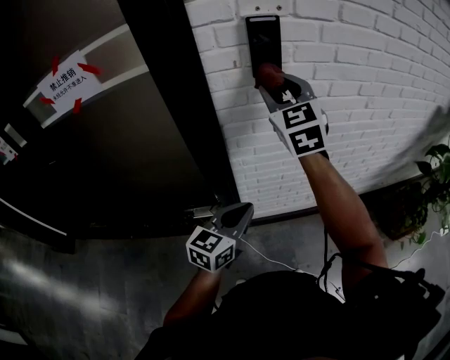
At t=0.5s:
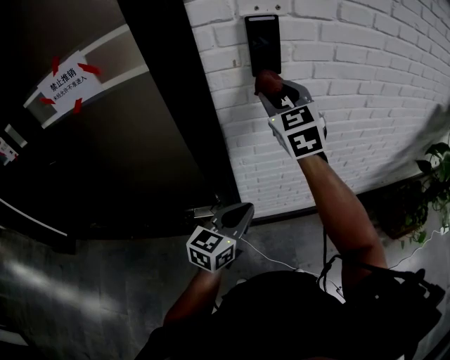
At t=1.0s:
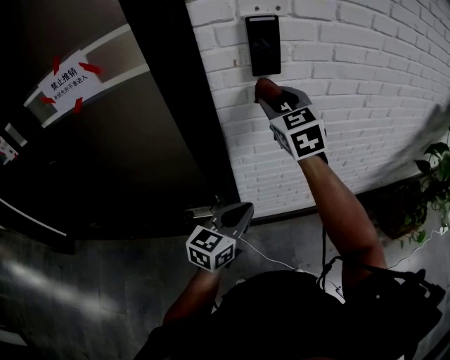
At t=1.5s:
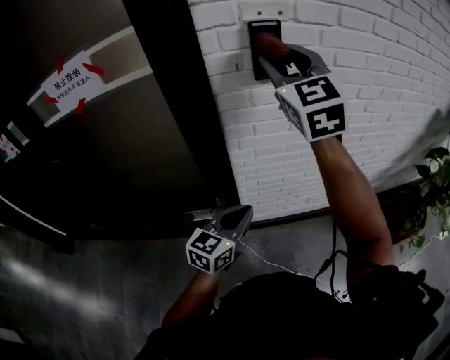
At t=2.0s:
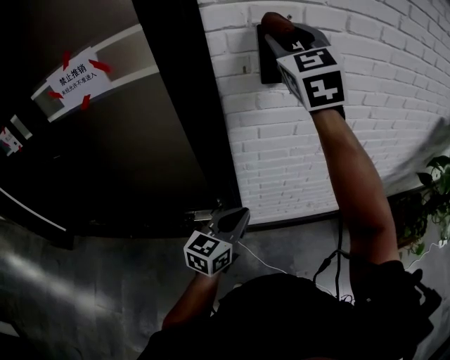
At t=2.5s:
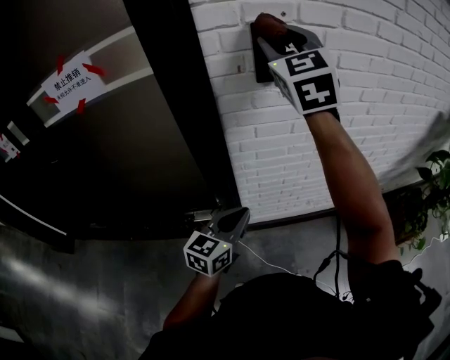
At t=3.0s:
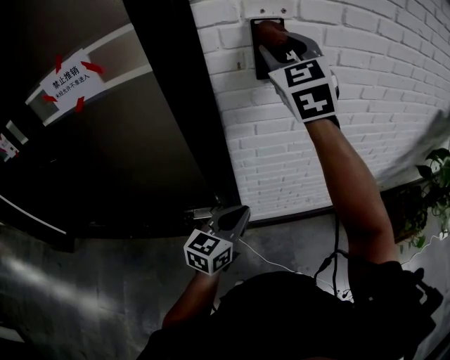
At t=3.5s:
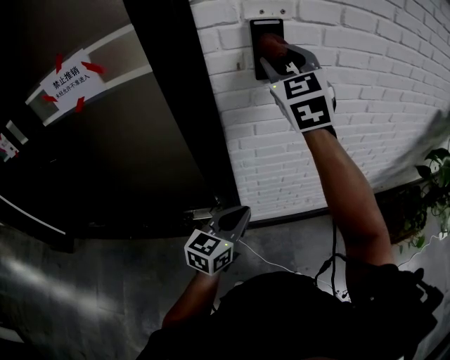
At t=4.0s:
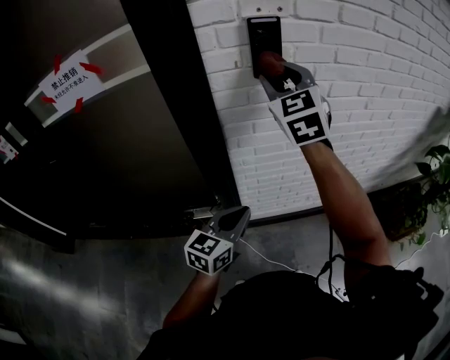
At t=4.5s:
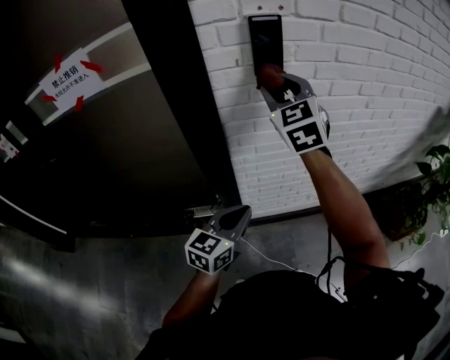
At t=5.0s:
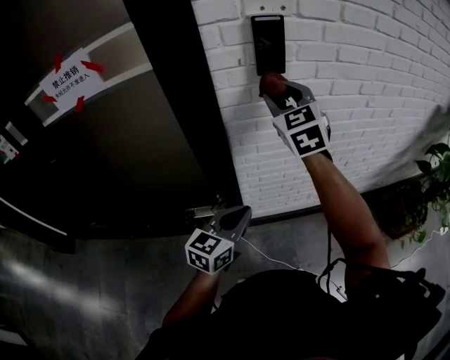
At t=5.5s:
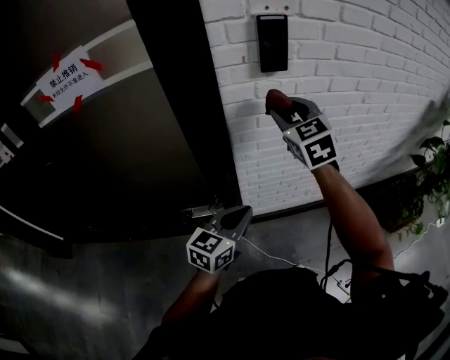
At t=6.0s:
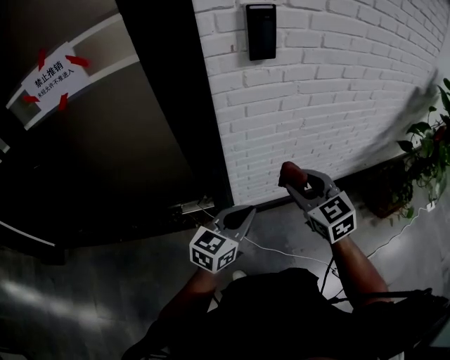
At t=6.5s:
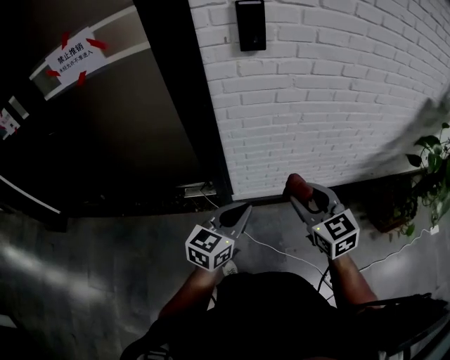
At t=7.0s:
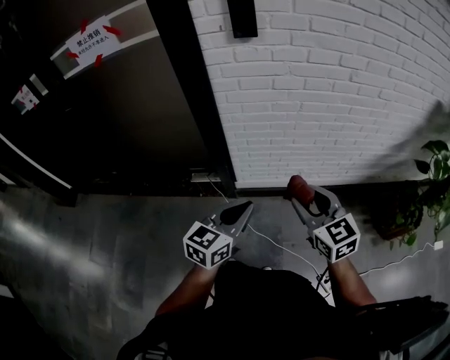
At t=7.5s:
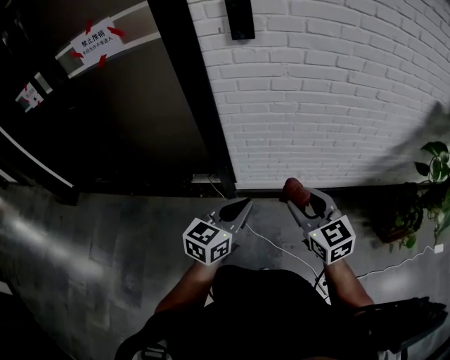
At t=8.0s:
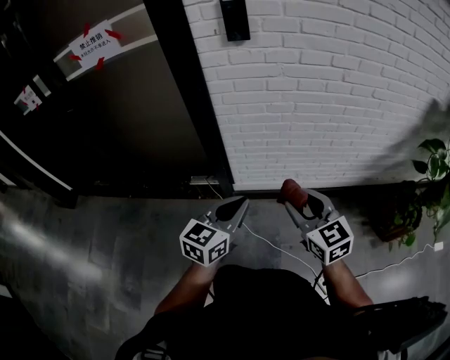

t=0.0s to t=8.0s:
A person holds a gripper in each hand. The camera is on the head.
t=0.0s to t=2.0s: The right gripper is displaced upward by roughly 15 cm.
t=2.0s to t=4.0s: The right gripper goes roughly 10 cm downward.
t=4.0s to t=6.0s: The right gripper moves downward and backward, roughly 30 cm, and turns by roughly 30 degrees; the left gripper moves backward, approximately 5 cm.
t=6.0s to t=8.0s: The left gripper moves to the right and backward, approximately 15 cm. Meanwhile the right gripper moves backward and to the right, roughly 20 cm.

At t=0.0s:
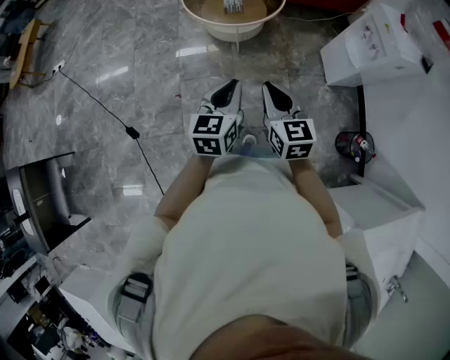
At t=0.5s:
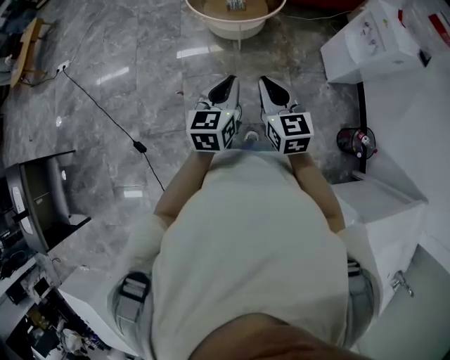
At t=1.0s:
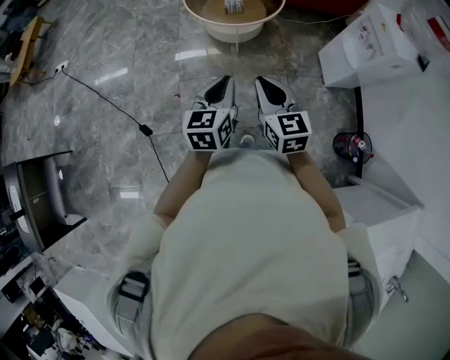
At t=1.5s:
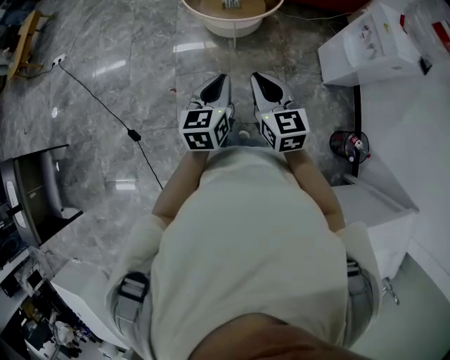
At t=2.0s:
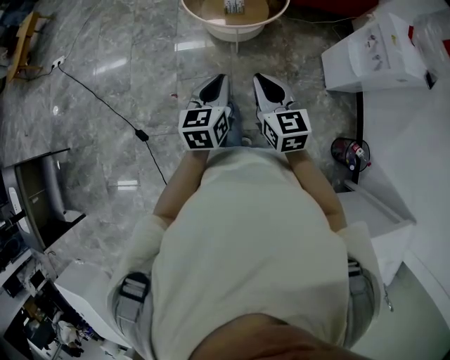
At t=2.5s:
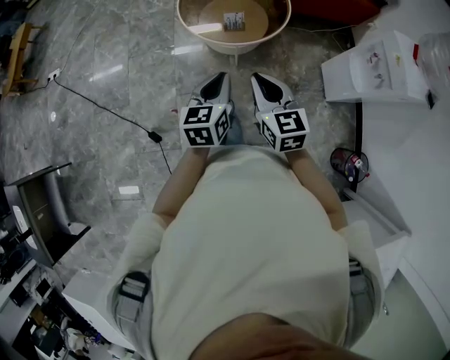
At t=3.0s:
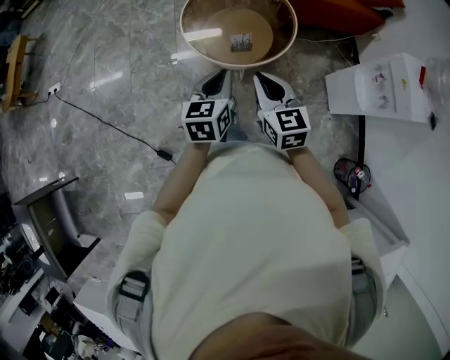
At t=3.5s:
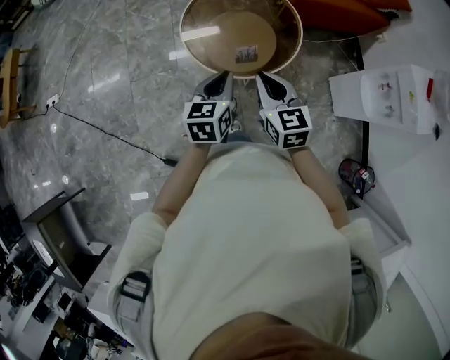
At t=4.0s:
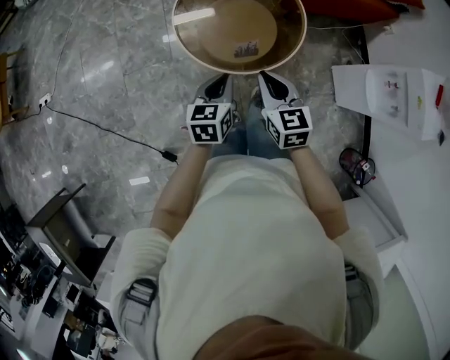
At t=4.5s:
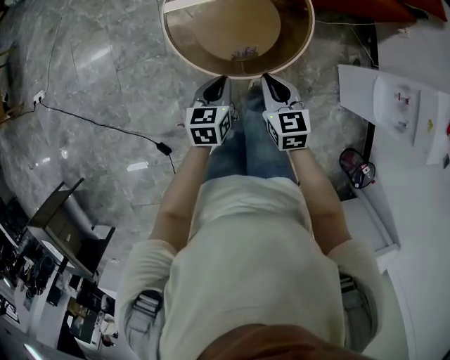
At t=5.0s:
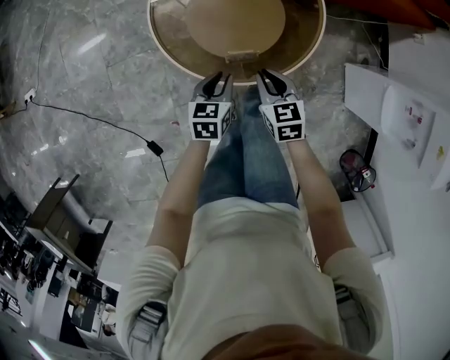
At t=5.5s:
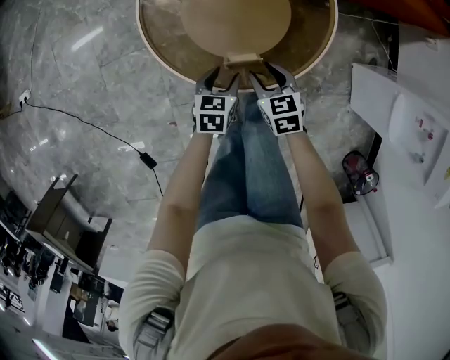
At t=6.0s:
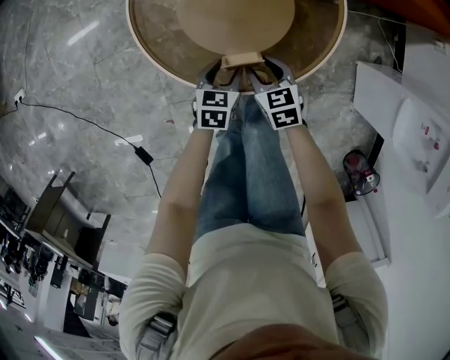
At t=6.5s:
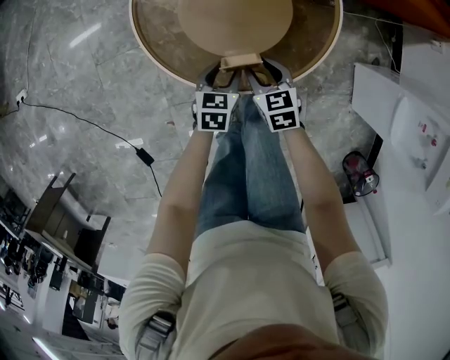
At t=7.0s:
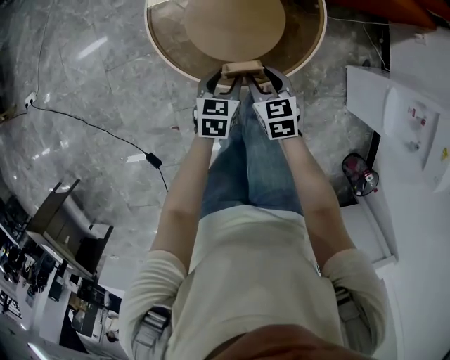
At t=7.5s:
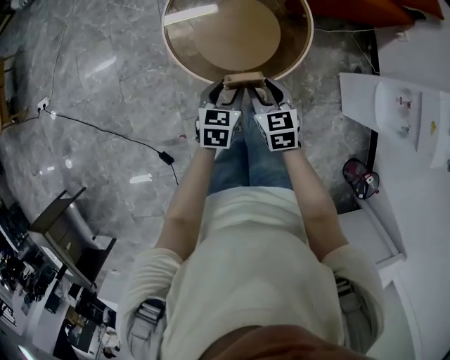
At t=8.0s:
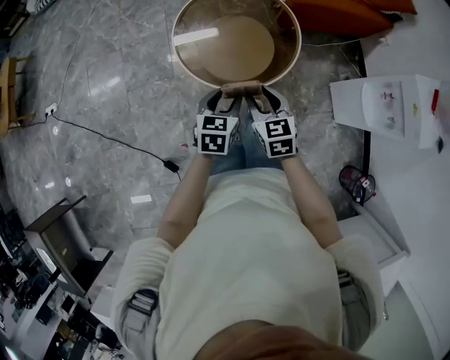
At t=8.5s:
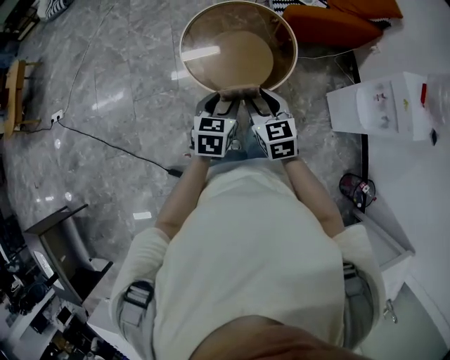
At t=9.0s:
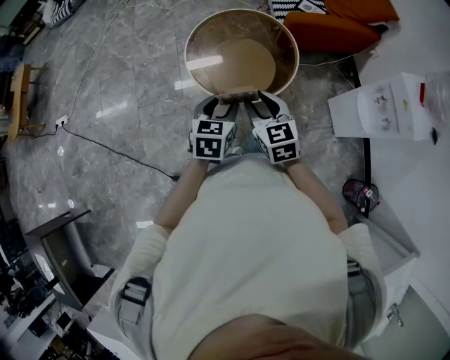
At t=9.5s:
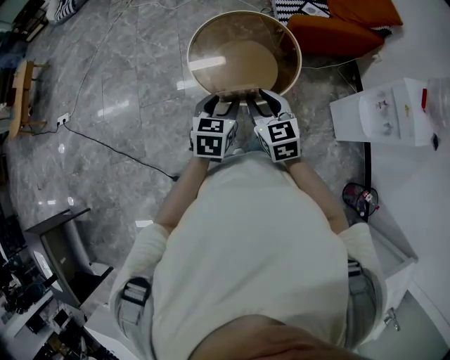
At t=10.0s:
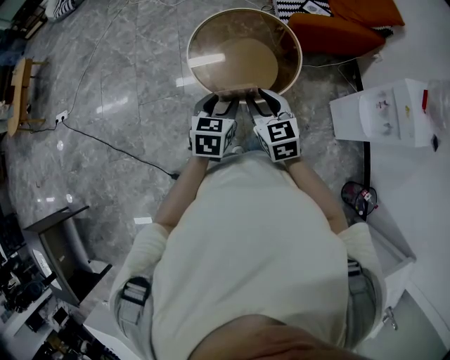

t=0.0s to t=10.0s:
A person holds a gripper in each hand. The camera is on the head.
t=0.0s to t=2.0s: The grippers both shift forward by some 5 cm.
t=2.0s to t=4.0s: Both grippers travel together forward, some 35 cm.
t=4.0s to t=6.0s: The two grippers go about 35 cm downward. The right gripper turns by approximately 20 degrees, and opens. Meanwhile the left gripper opens its fingers.
t=6.0s to t=8.0s: The right gripper is displaced upward and backward by roughly 35 cm, while the left gripper heads upward, covering roughly 30 cm.
t=8.0s to t=10.0s: The grippers both shift upward by approximately 10 cm.

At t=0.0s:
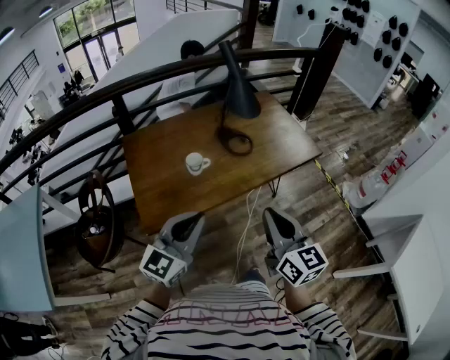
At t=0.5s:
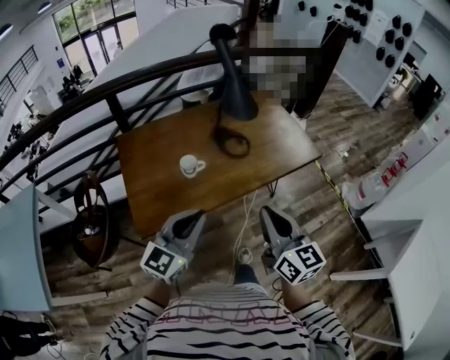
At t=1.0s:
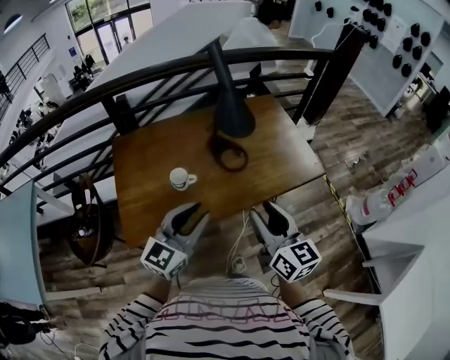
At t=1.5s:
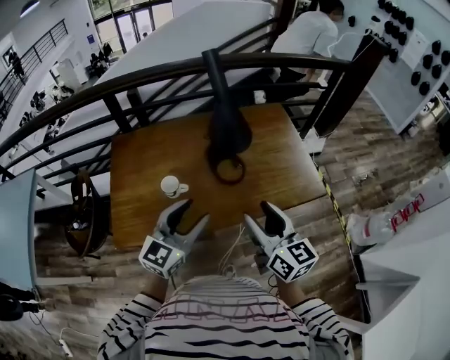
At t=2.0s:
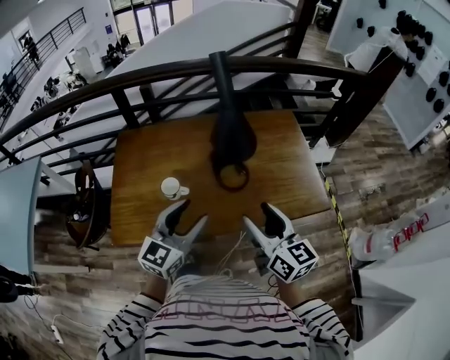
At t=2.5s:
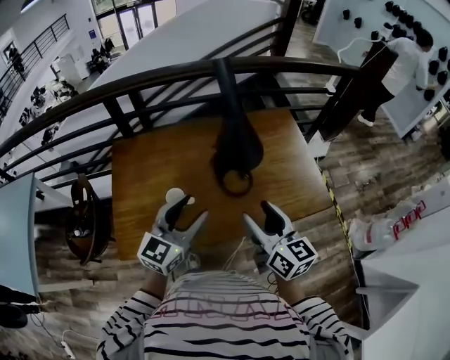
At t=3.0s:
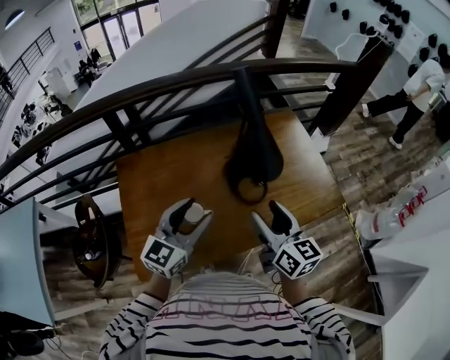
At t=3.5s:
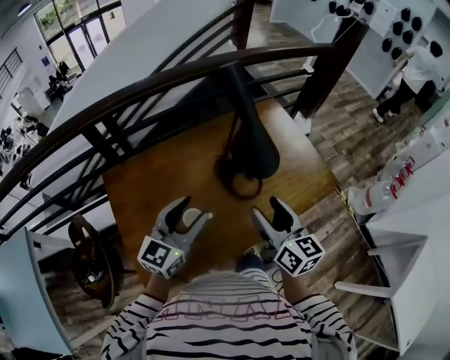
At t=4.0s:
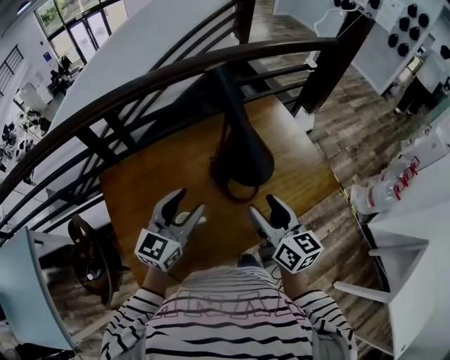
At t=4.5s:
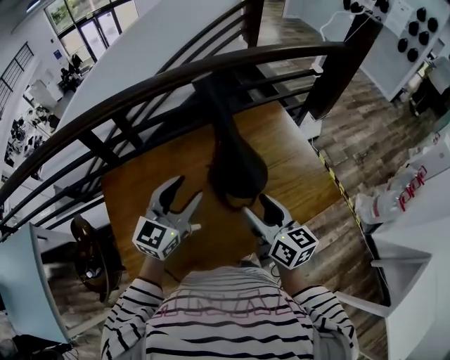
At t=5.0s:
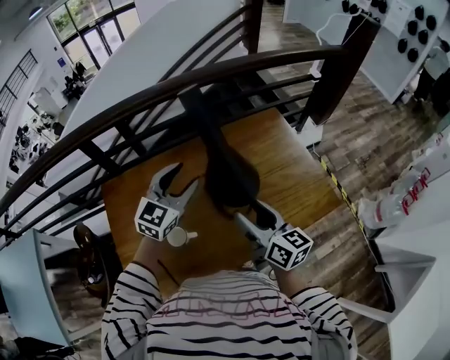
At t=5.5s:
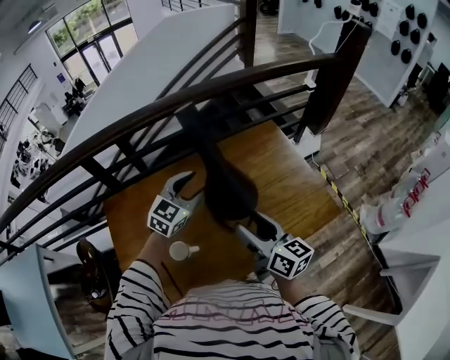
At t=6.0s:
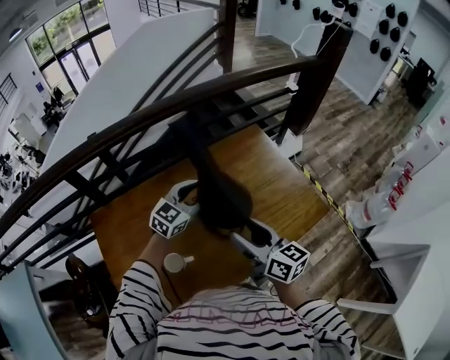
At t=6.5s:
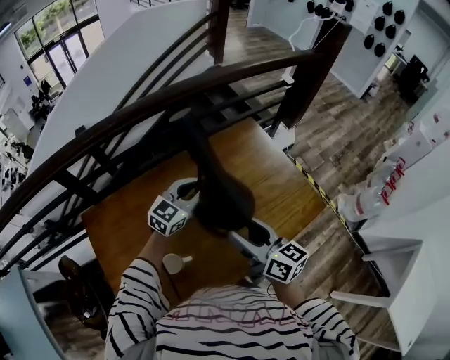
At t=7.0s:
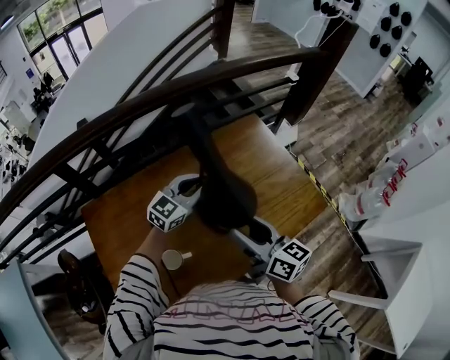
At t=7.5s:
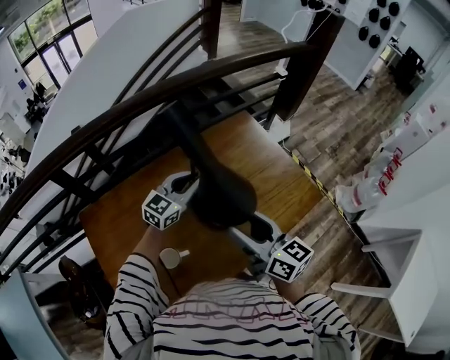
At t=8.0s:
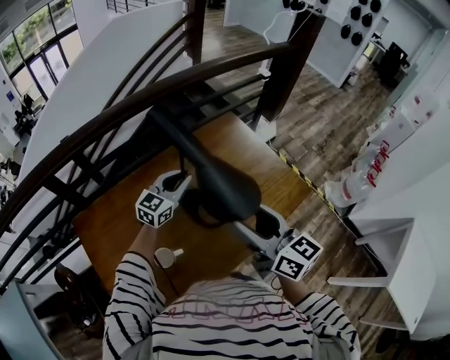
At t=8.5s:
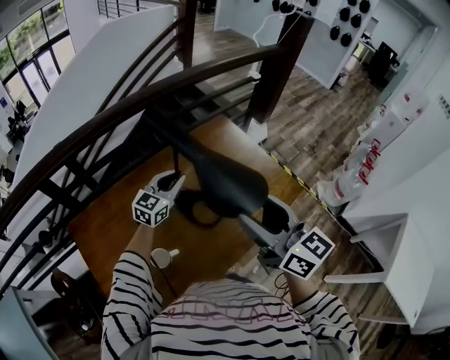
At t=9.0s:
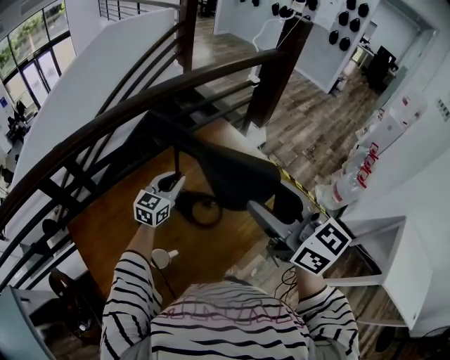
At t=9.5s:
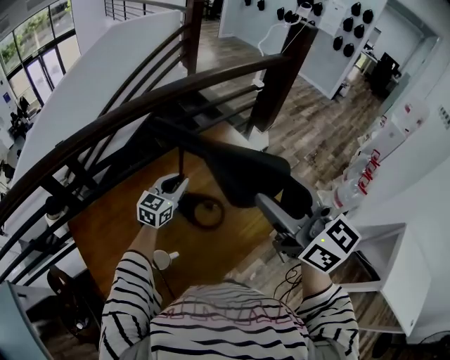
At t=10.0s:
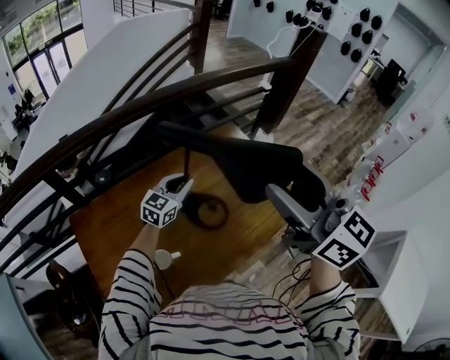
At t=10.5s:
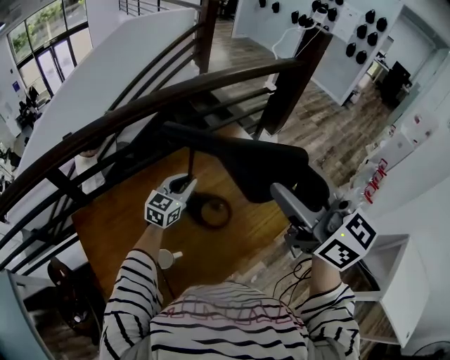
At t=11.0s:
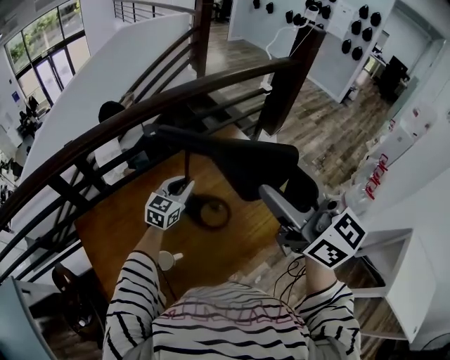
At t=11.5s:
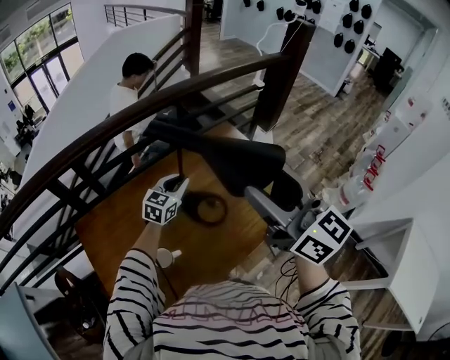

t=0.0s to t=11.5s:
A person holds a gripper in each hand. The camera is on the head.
t=0.0s to t=2.0s: The two grippers go roughly 30 cm forward and to the right. The right gripper turns by approximately 20 degrees, and opens its fingers. Meanwhile the left gripper swivels some 20 degrees, and opens its fingers.
t=2.0s to t=4.0s: Both grippers move forward and to the left, some 20 cm. The right gripper changes its angle by roughly 20 degrees.
t=4.0s to t=6.0s: The left gripper moves forward and to the right, some 20 cm, and turns by about 20 degrees; the right gripper heads forward, covering about 5 cm.
t=6.0s to t=7.5s: The left gripper closes.
t=7.5s to t=9.5s: The right gripper travels upward by roughly 20 cm, and turns by some 20 degrees.
t=9.5s to t=11.5s: The grippers make only small movements.
